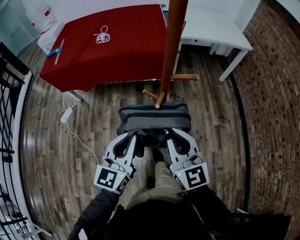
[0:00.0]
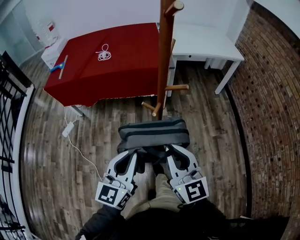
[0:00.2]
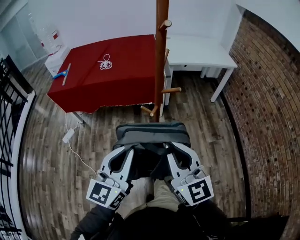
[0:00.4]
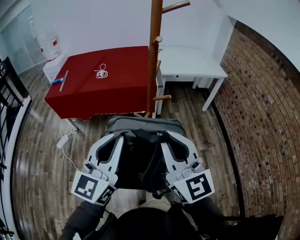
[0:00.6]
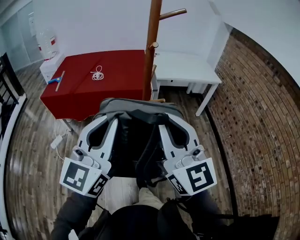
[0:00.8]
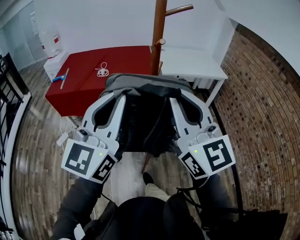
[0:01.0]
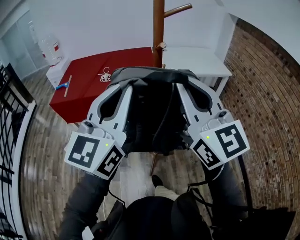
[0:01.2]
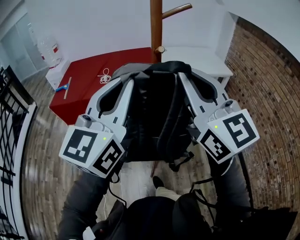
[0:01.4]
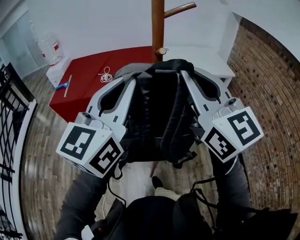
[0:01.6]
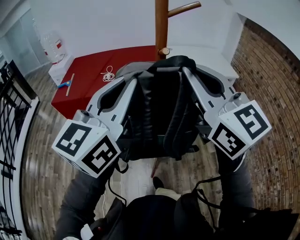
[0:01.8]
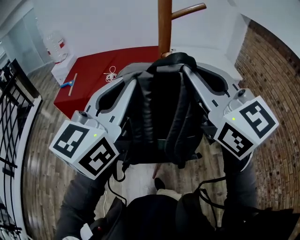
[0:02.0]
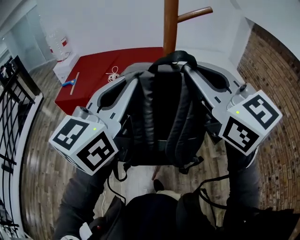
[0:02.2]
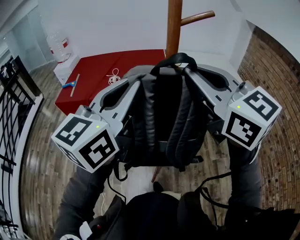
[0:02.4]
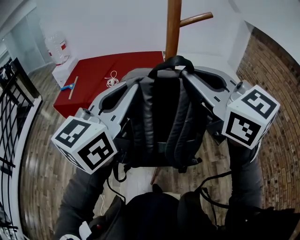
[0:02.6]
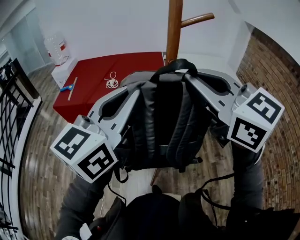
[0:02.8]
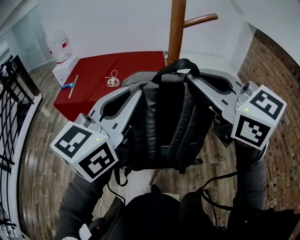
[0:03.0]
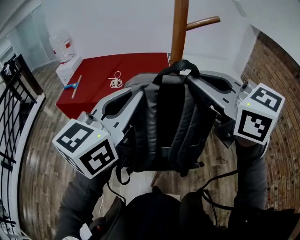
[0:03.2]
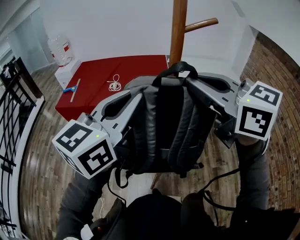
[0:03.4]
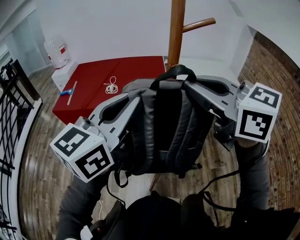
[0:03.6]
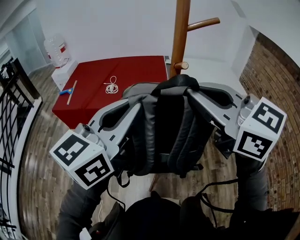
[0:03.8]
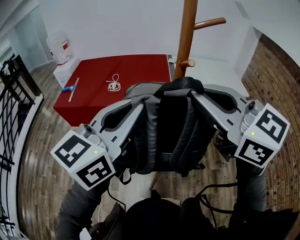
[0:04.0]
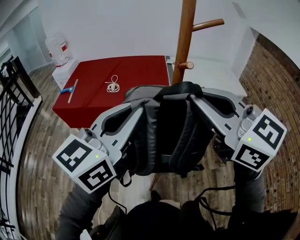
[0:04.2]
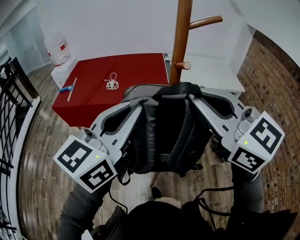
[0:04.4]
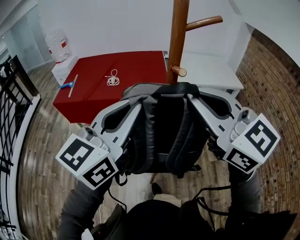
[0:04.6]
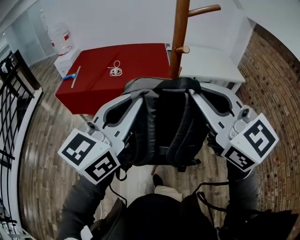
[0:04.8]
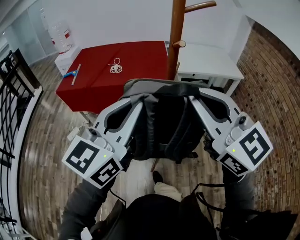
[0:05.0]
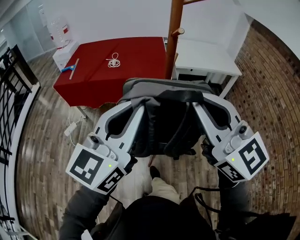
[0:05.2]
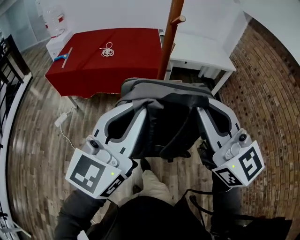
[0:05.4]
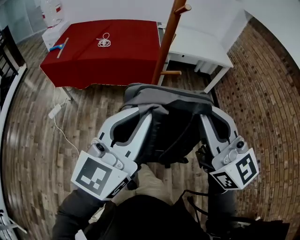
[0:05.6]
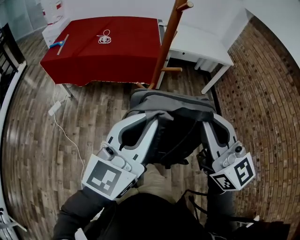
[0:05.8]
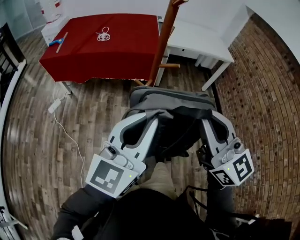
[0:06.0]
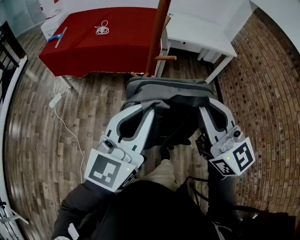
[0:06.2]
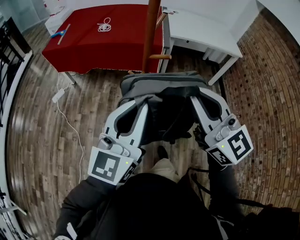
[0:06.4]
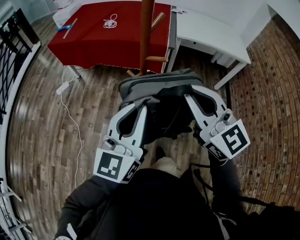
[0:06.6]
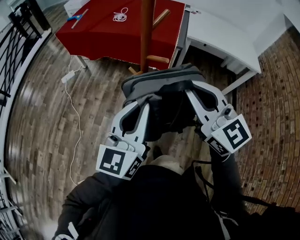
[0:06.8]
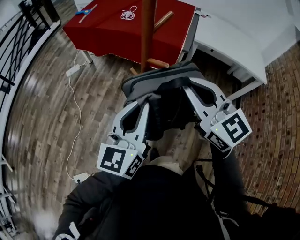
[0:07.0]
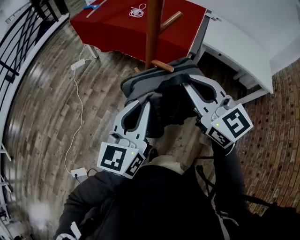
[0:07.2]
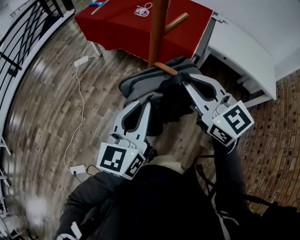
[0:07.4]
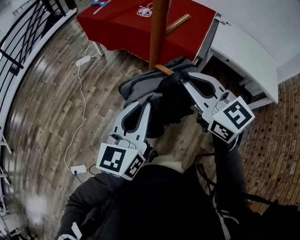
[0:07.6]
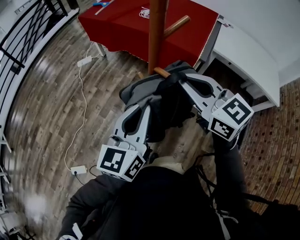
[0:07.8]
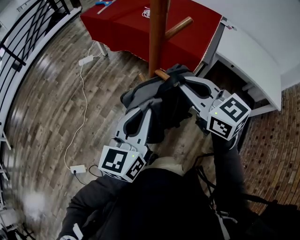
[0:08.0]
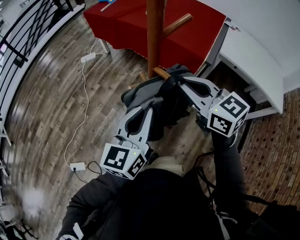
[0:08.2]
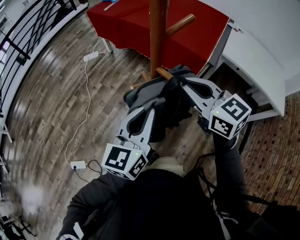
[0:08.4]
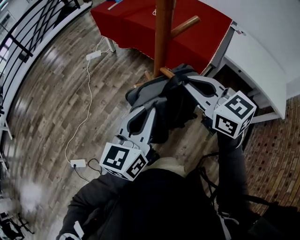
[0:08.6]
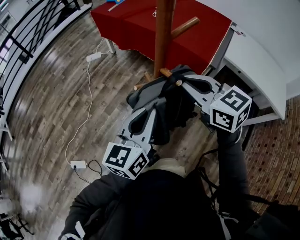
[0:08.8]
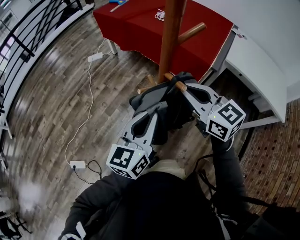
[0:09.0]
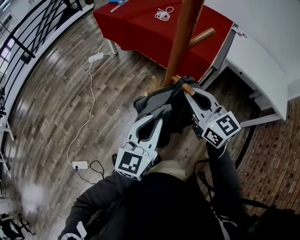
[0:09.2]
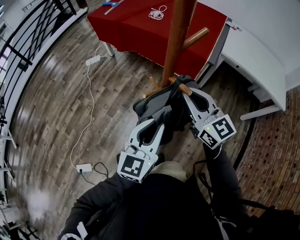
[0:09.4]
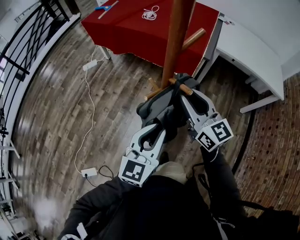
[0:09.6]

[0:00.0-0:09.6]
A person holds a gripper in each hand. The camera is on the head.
0.0 to 1.6 s: Both grippers move upward, some 35 cm.
1.6 to 3.2 s: The two grippers go some 10 cm forward. The right gripper changes its angle by about 30 degrees.
3.2 to 4.8 s: The grippers both shift backward by roughly 10 cm.
4.8 to 6.4 s: The left gripper moves downward, backward and to the right, roughly 20 cm. The right gripper heads downward, to the right and backward, covering about 20 cm.
6.4 to 8.0 s: The right gripper moves approximately 25 cm, and turns by some 40 degrees, while the left gripper ends up about 20 cm from where it was, and swivels some 30 degrees.
8.0 to 9.6 s: The right gripper shifts by roughly 5 cm, and swivels approximately 20 degrees; the left gripper is displaced backward by roughly 10 cm.

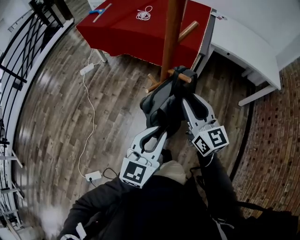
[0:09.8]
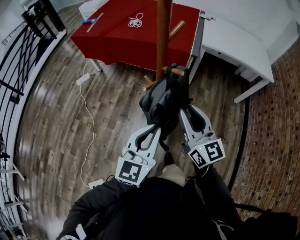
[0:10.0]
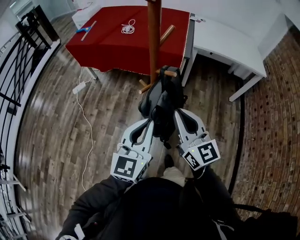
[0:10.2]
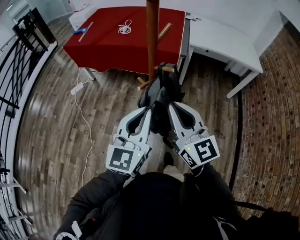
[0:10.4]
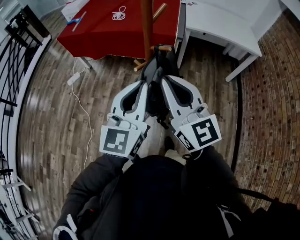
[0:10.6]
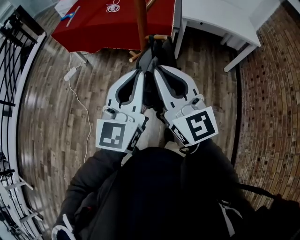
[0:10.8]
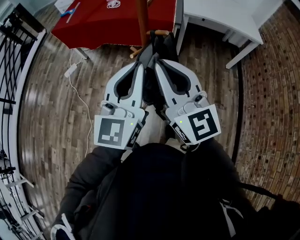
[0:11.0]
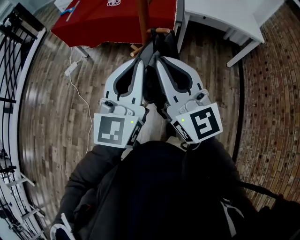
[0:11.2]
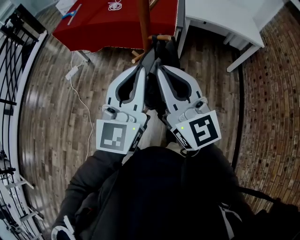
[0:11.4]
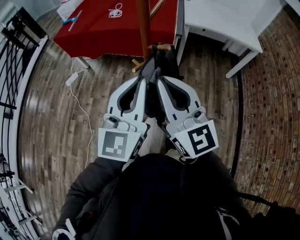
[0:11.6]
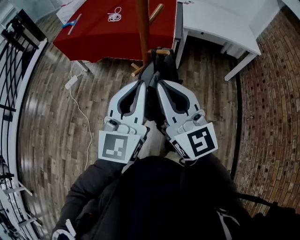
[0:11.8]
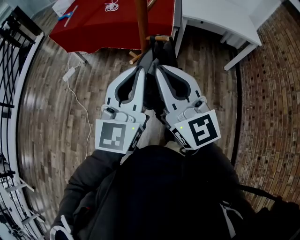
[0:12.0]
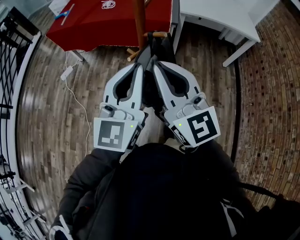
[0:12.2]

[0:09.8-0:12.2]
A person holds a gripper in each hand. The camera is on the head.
9.8 to 11.0 s: The right gripper goes roughly 15 cm upward, backward and to the left, and closes its fingers, while the left gripper goes roughly 15 cm upward.
11.0 to 12.2 s: The two grippers keep their place.

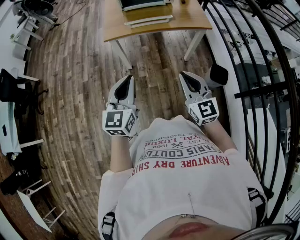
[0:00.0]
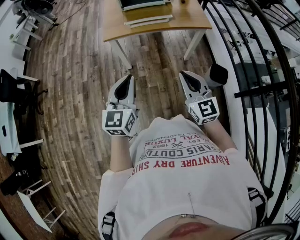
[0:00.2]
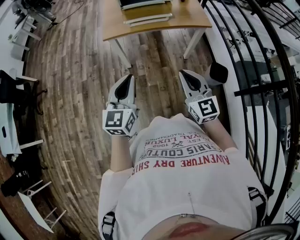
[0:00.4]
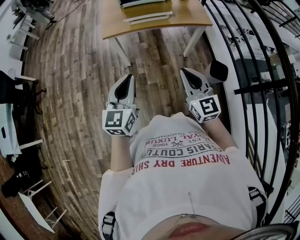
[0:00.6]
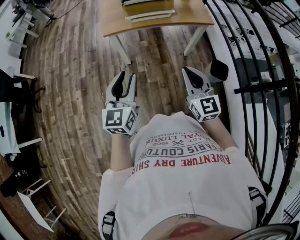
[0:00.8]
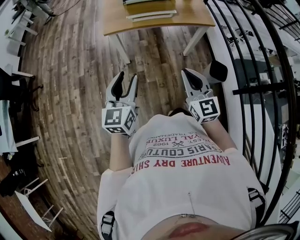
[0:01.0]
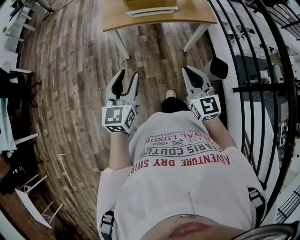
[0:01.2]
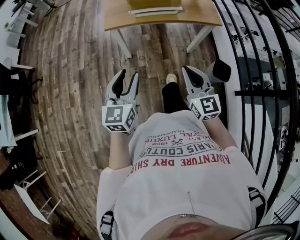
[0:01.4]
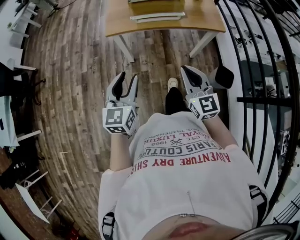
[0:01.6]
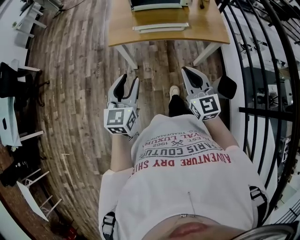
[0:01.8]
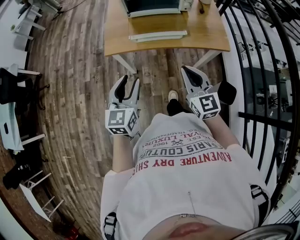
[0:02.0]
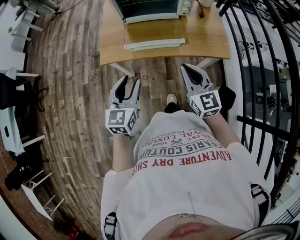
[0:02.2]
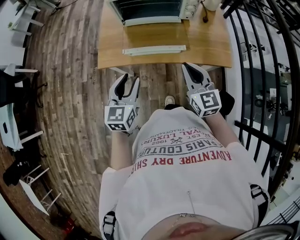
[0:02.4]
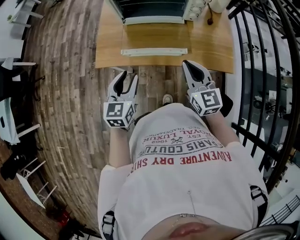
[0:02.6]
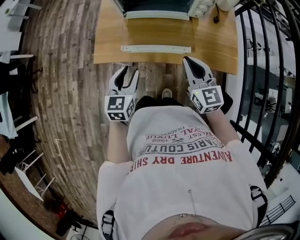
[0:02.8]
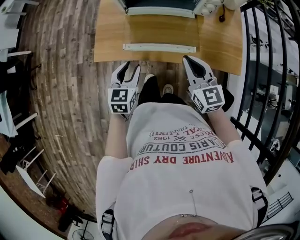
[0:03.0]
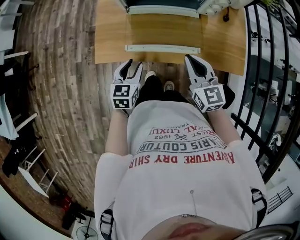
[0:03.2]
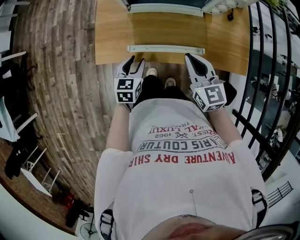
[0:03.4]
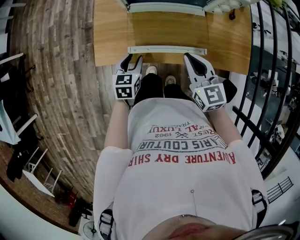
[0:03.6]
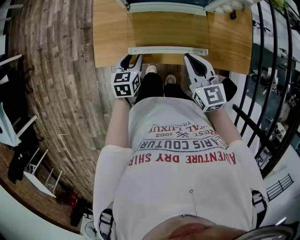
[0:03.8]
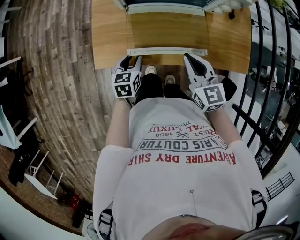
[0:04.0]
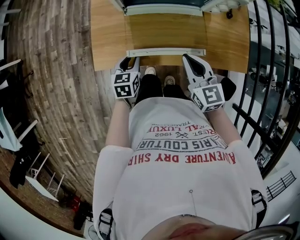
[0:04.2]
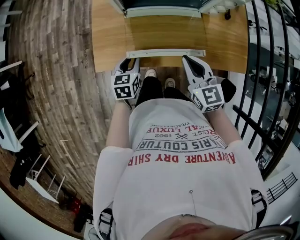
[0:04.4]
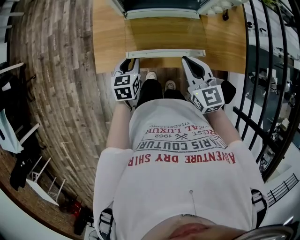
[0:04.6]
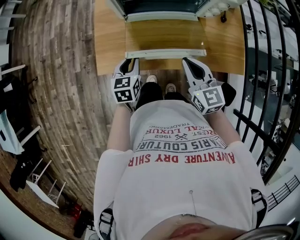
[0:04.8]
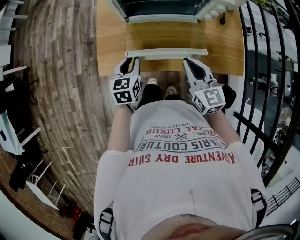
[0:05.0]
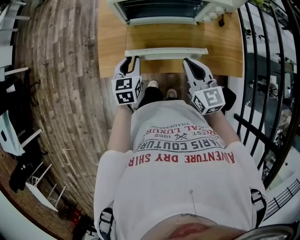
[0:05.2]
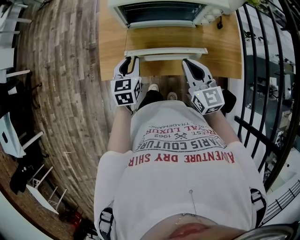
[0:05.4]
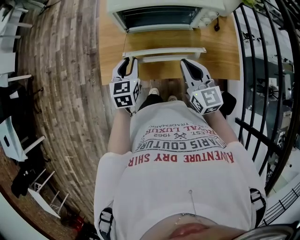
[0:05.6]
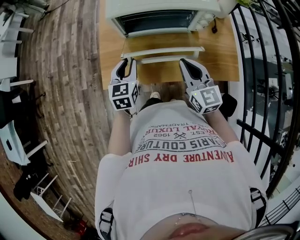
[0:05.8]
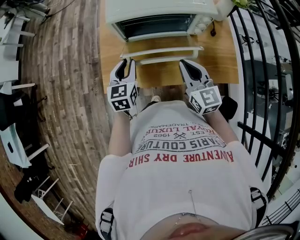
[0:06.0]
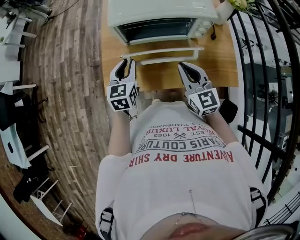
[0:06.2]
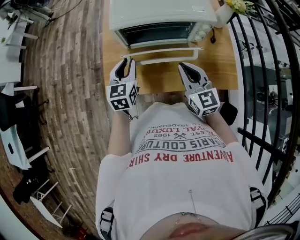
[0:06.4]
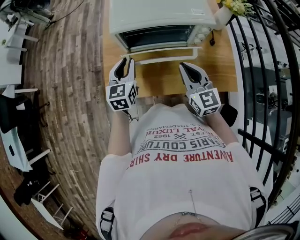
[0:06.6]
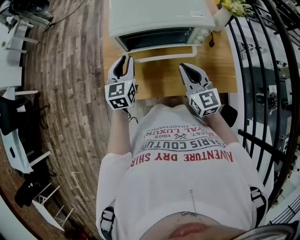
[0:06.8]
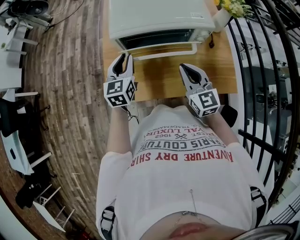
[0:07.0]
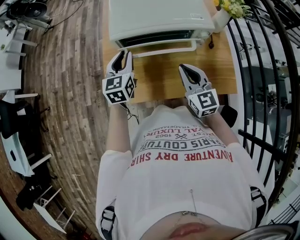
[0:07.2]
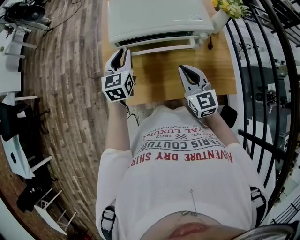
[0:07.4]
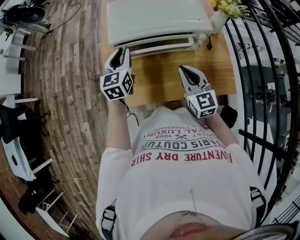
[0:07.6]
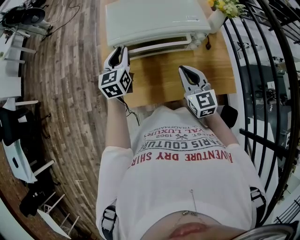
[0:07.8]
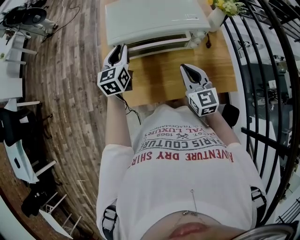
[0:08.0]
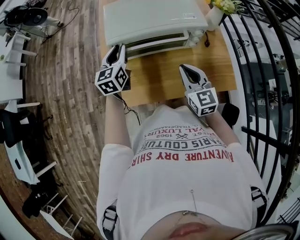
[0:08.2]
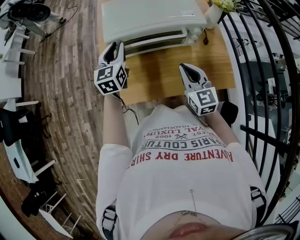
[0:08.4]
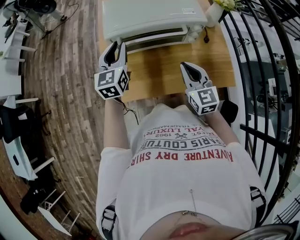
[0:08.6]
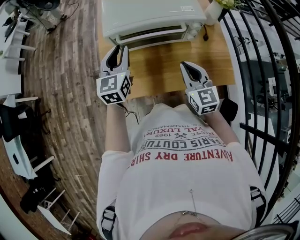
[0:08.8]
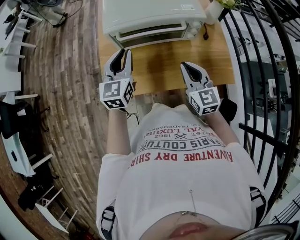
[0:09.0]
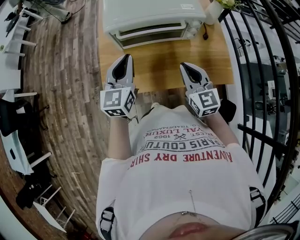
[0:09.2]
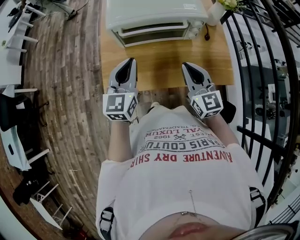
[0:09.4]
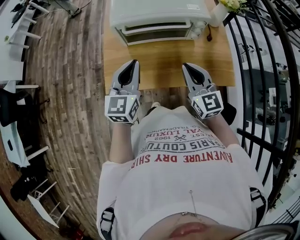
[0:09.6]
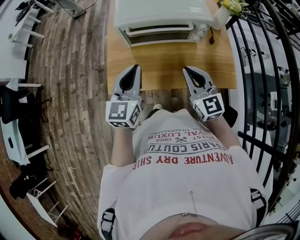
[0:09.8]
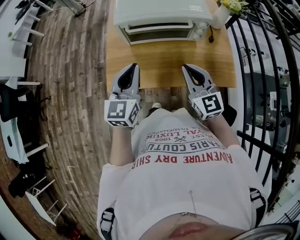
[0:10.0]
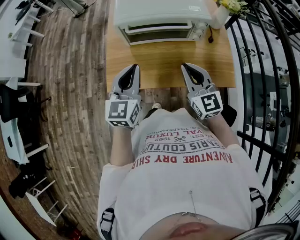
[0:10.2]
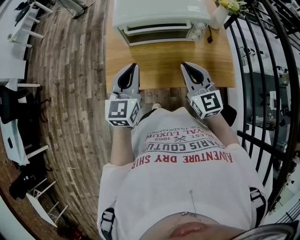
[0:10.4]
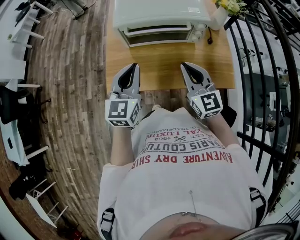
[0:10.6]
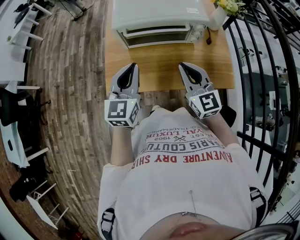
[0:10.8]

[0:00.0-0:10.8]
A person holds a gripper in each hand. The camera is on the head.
0.0 to 1.6 s: The grippers both shift forward by some 10 cm. The left gripper opens its fingers.
1.6 to 3.0 s: The left gripper moves forward and downward, approximately 35 cm, and changes its angle by about 20 degrees. Meanwhile the right gripper heads forward, covering roughly 35 cm.
3.0 to 4.6 s: The right gripper moves some 5 cm. Meanwhile the left gripper travels forward and downward by approximately 10 cm.
4.6 to 6.2 s: The left gripper goes about 15 cm upward and forward, while the right gripper travels upward by some 5 cm.
6.2 to 7.8 s: The left gripper heads forward and upward, covering approximately 15 cm.
7.8 to 9.2 s: The left gripper moves backward, some 15 cm; the right gripper moves backward, roughly 5 cm.
9.2 to 10.8 s: The left gripper goes about 5 cm backward.

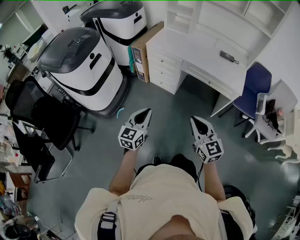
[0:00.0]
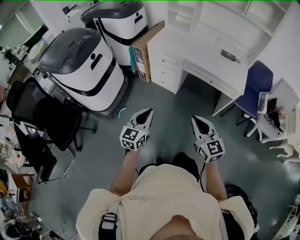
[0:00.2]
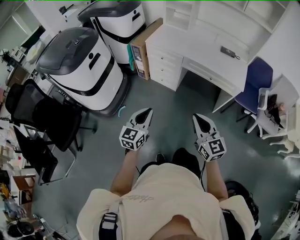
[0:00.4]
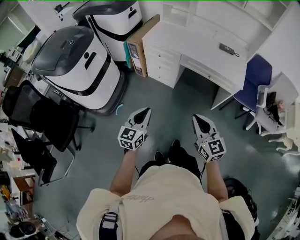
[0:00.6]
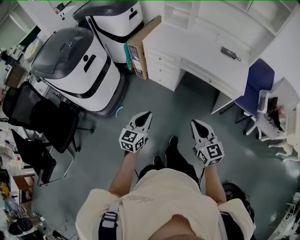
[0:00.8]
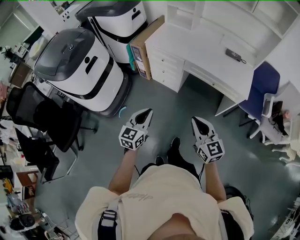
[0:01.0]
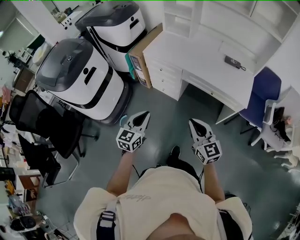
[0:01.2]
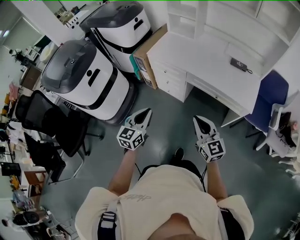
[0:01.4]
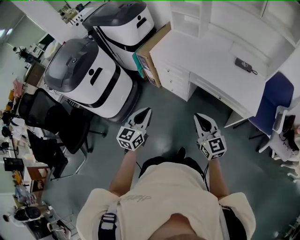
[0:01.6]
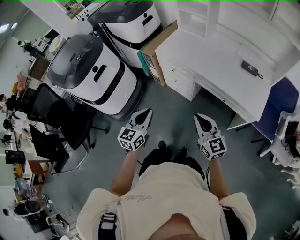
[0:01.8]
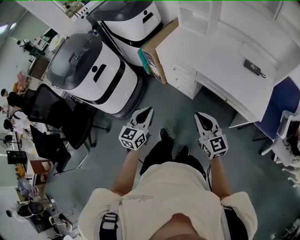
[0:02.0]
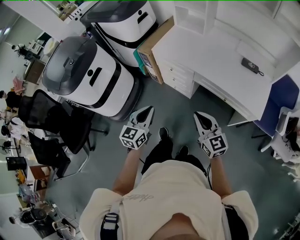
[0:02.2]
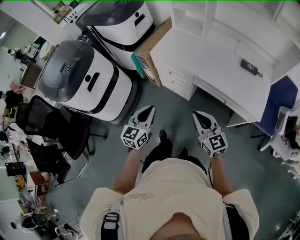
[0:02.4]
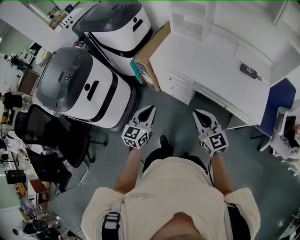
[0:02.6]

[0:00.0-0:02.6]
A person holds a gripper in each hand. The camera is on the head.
0.0 to 1.2 s: Both grippers travel together forward, approximately 15 cm.
1.2 to 2.6 s: Both grippers move forward, some 20 cm.
